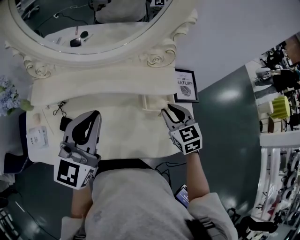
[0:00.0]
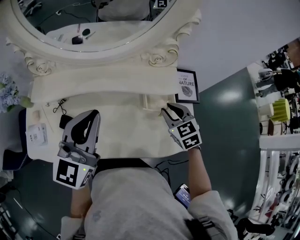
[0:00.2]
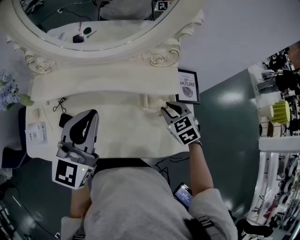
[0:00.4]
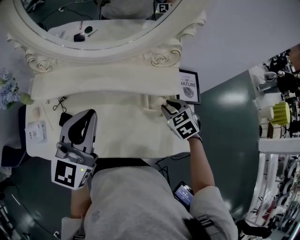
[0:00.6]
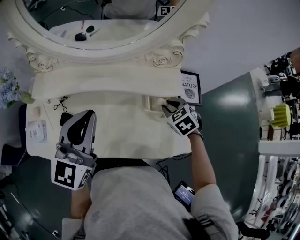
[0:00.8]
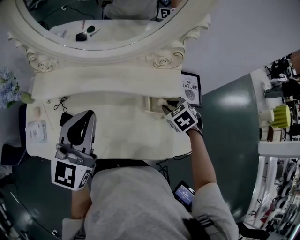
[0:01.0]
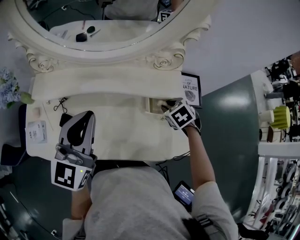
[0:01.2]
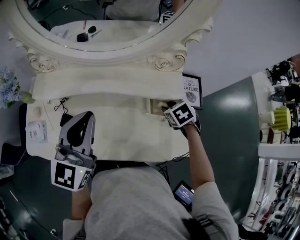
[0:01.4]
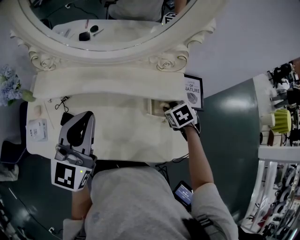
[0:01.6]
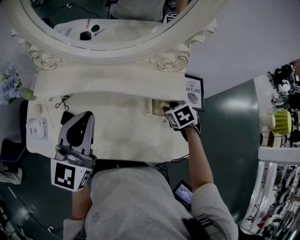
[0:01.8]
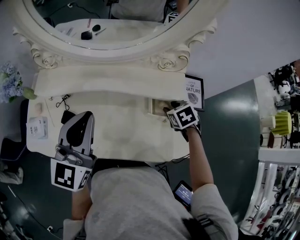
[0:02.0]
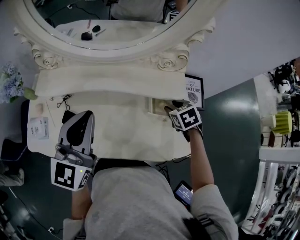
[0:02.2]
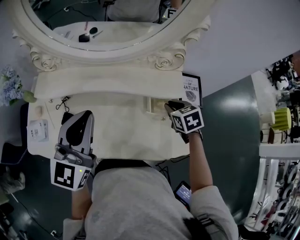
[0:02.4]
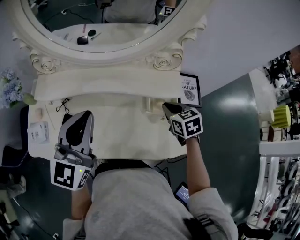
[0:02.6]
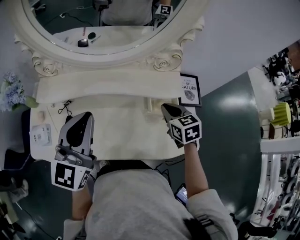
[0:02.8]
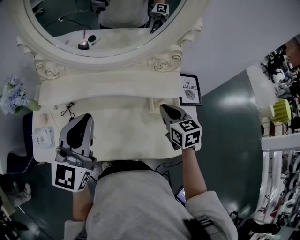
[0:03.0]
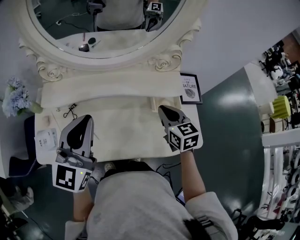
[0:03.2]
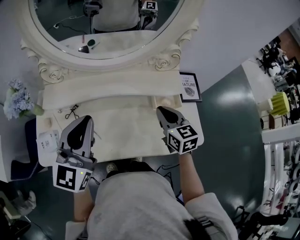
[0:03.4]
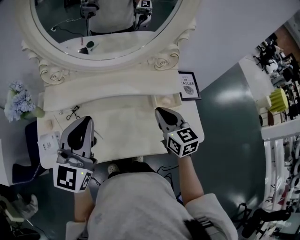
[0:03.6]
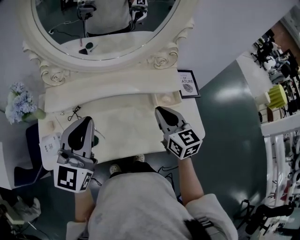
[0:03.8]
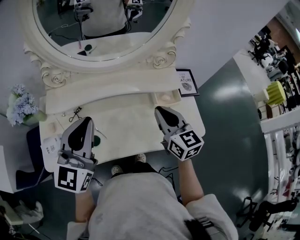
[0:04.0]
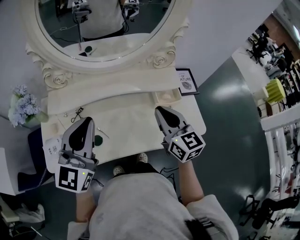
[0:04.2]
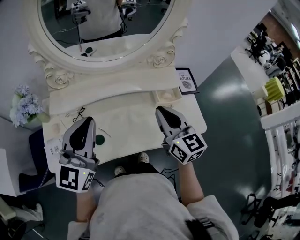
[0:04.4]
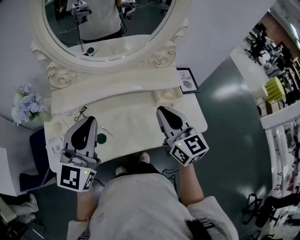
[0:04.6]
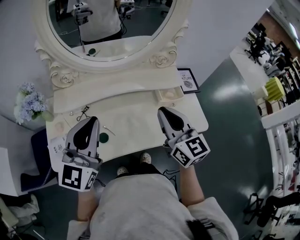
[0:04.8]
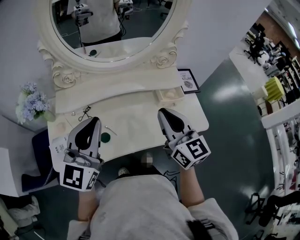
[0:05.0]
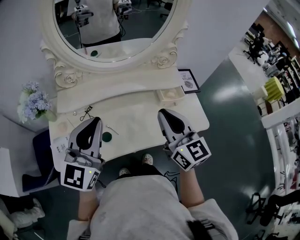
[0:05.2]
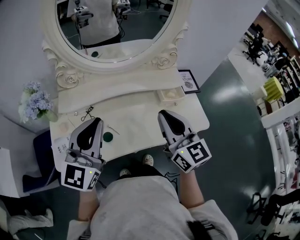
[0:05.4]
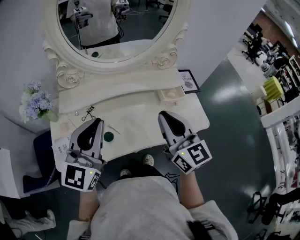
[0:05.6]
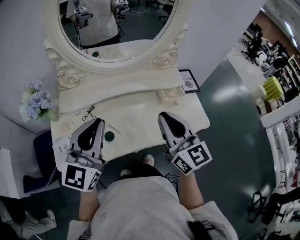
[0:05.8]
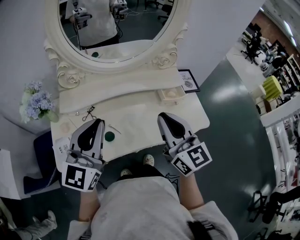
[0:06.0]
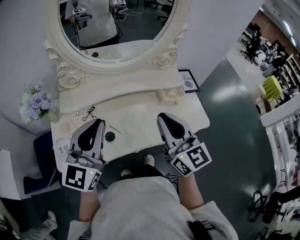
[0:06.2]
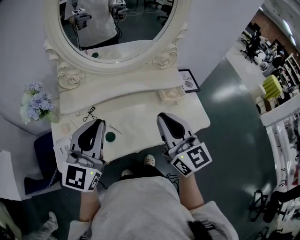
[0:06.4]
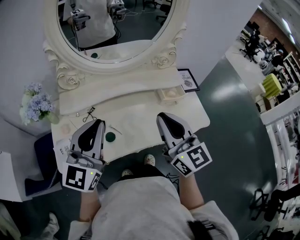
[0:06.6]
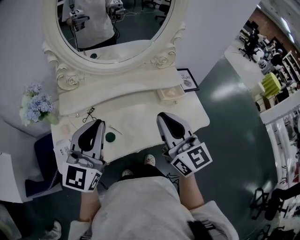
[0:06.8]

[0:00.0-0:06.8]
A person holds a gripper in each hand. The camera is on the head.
0:00.0 to 0:01.4: The right gripper moves downward and forward, some 10 cm, and angles its fingers downward, by some 40 degrees.
0:01.4 to 0:02.8: The right gripper travels upward by some 5 cm, and swivels approximately 30 degrees.
0:02.8 to 0:04.0: The left gripper shifts some 5 cm to the left, while the right gripper is displaced upward, to the left and backward by approximately 15 cm, and turns by about 30 degrees.
0:04.0 to 0:05.4: The left gripper goes roughly 5 cm backward. The right gripper goes about 15 cm backward, upward and to the left.
0:05.4 to 0:06.8: There are only small adjustments of the grippers.

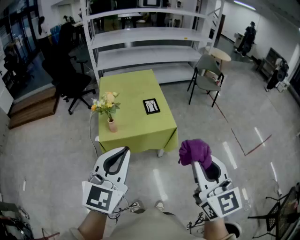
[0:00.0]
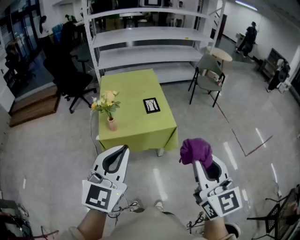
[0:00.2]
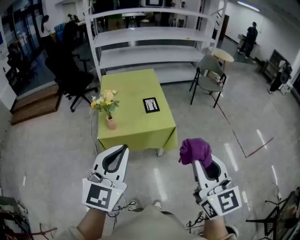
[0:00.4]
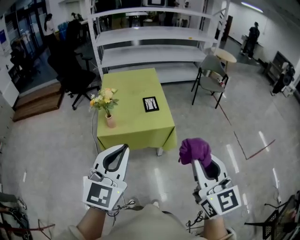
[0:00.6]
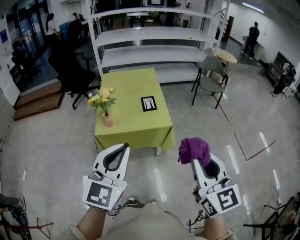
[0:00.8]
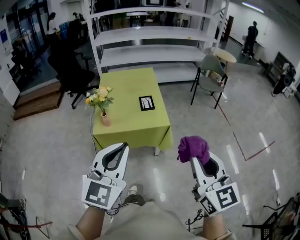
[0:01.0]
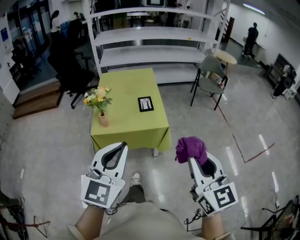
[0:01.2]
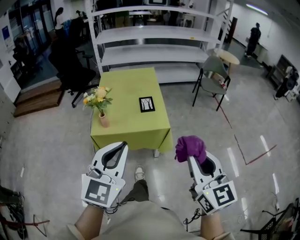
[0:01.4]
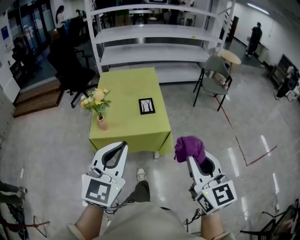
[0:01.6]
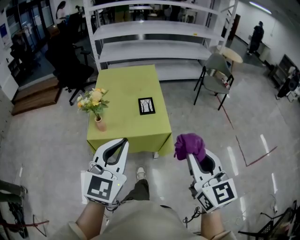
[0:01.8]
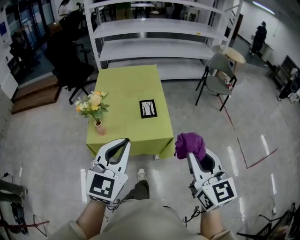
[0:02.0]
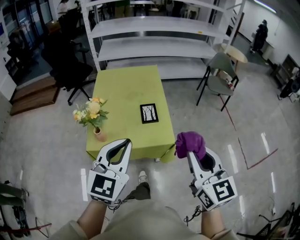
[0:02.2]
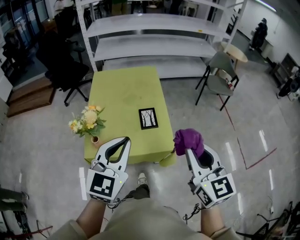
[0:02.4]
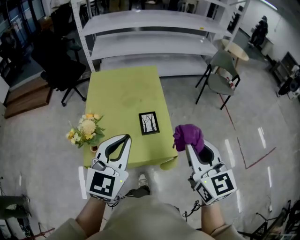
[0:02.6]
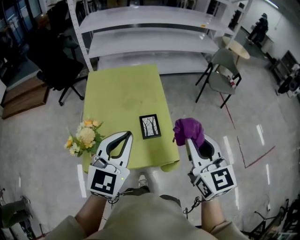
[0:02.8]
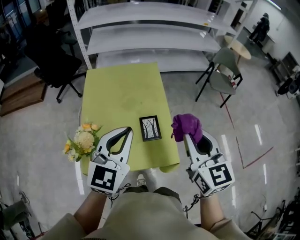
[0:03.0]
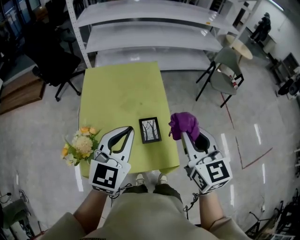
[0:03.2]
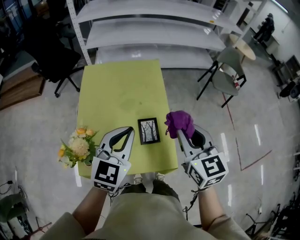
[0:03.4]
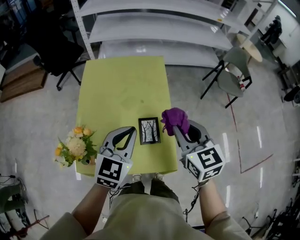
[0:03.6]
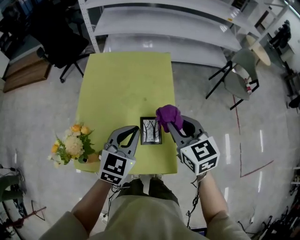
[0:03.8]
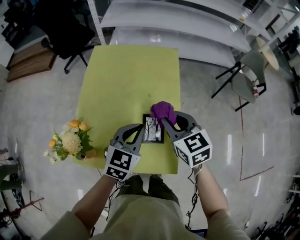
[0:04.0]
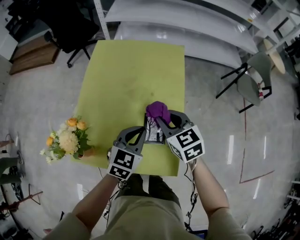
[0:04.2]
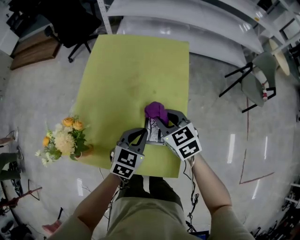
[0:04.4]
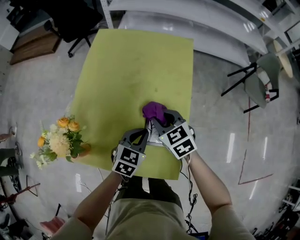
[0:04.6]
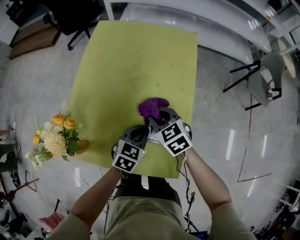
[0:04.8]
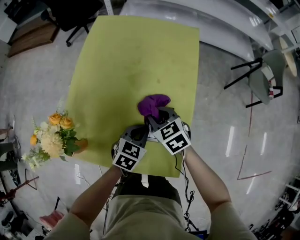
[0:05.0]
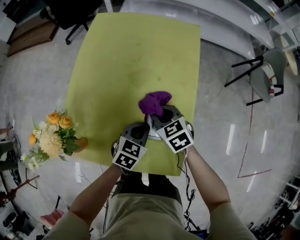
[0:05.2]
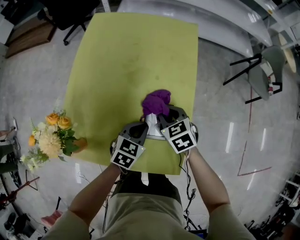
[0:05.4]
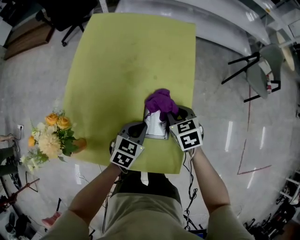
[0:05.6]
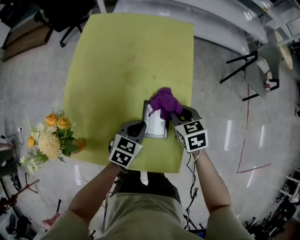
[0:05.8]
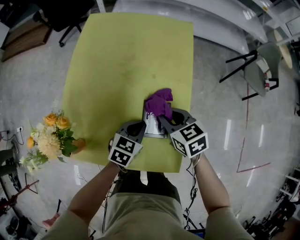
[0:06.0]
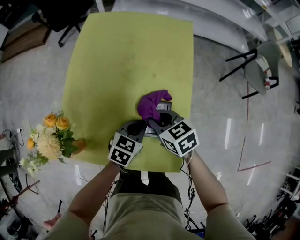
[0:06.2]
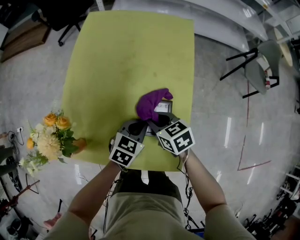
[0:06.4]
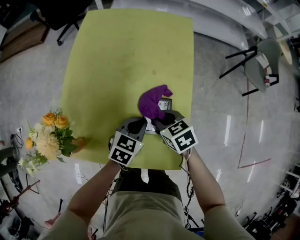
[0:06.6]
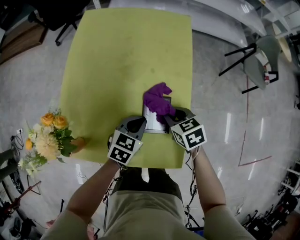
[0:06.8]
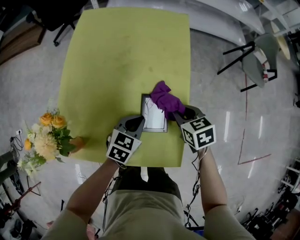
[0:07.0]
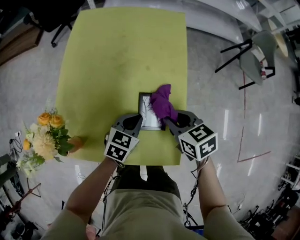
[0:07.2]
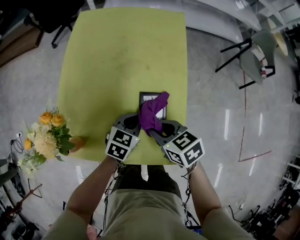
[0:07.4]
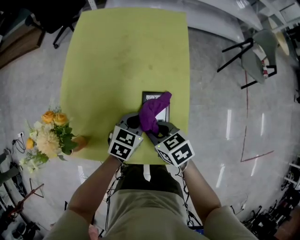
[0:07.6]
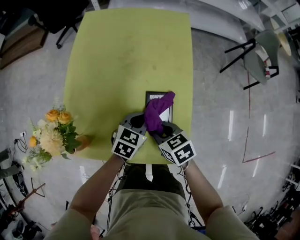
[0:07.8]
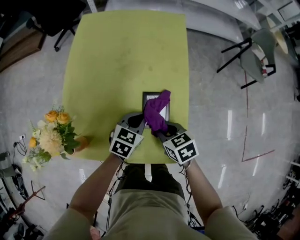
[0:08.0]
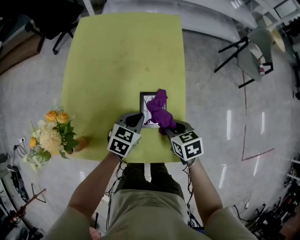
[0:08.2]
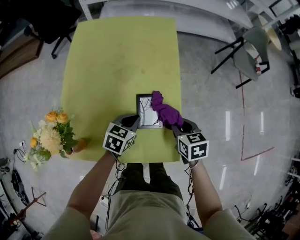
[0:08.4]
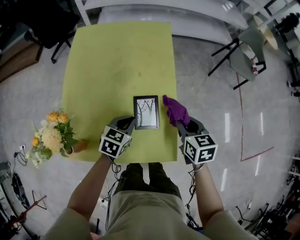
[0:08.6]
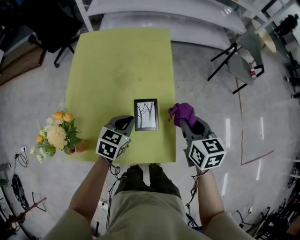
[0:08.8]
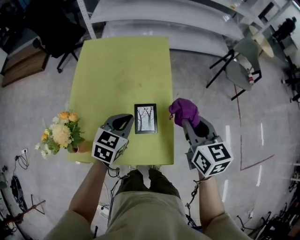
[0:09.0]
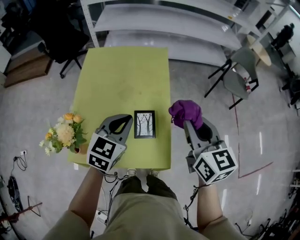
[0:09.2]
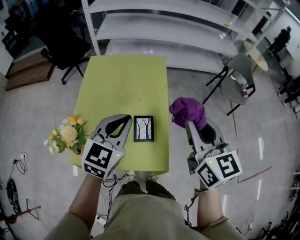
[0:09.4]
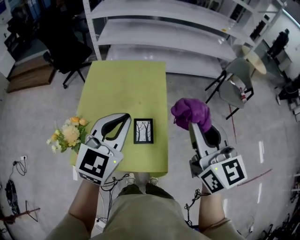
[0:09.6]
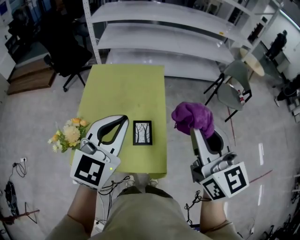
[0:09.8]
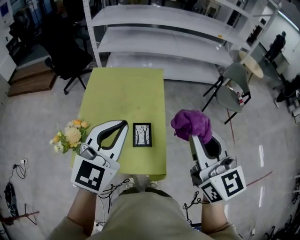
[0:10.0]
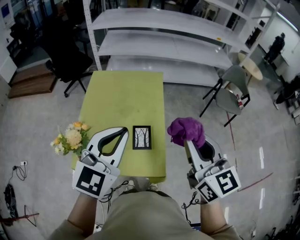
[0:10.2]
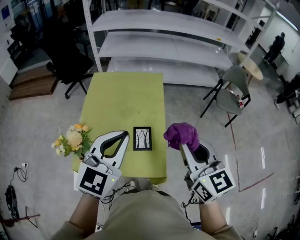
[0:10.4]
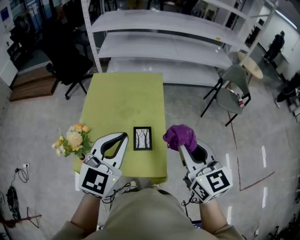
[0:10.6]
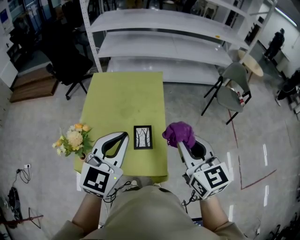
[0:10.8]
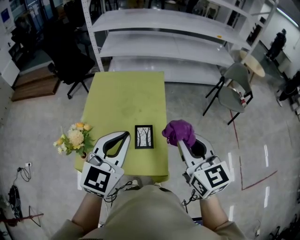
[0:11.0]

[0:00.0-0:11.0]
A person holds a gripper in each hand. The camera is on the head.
0:00.0 to 0:01.6: The right gripper moves to the right, forward and downward, approximately 15 cm; the left gripper is displaced to the right and forward by some 10 cm.
0:01.6 to 0:03.2: The pair of grippers is taken forward, approximately 50 cm.
0:03.2 to 0:04.8: The left gripper heads downward, covering about 35 cm, and points its fingers about 30 degrees further downward. The right gripper goes roughly 35 cm downward and forward, and swivels some 50 degrees.
0:04.8 to 0:06.2: The right gripper moves about 10 cm to the right and comes back.
0:06.2 to 0:07.8: The right gripper heads backward, covering about 10 cm, and moves about 10 cm to the right and comes back.
0:07.8 to 0:09.4: Both grippers move upward, some 35 cm. The left gripper rotates roughly 30 degrees, while the right gripper angles its fingers upward, by about 40 degrees.
0:09.4 to 0:11.0: The right gripper is displaced backward by approximately 5 cm. The left gripper shifts some 10 cm backward and upward.

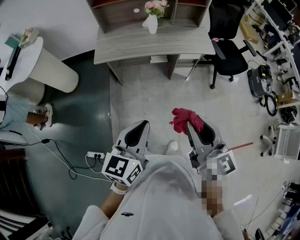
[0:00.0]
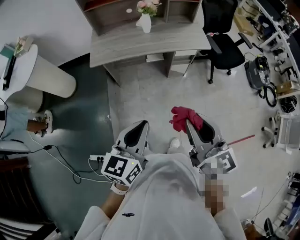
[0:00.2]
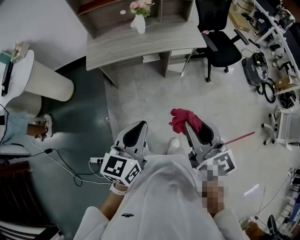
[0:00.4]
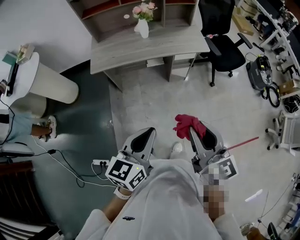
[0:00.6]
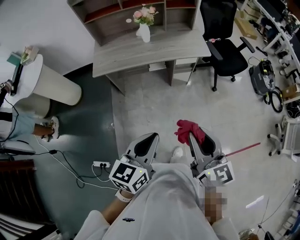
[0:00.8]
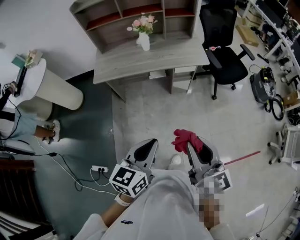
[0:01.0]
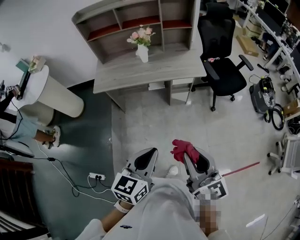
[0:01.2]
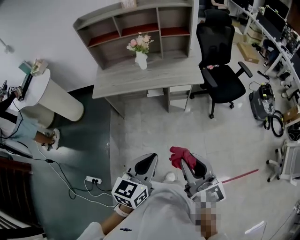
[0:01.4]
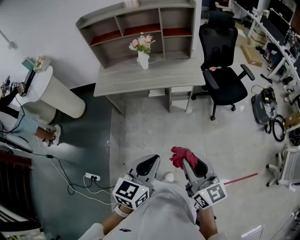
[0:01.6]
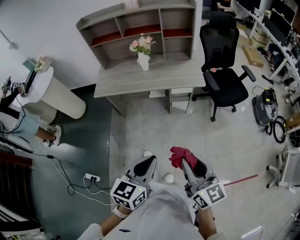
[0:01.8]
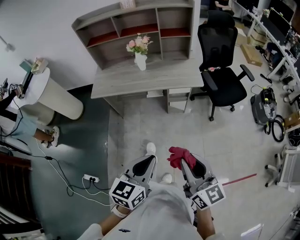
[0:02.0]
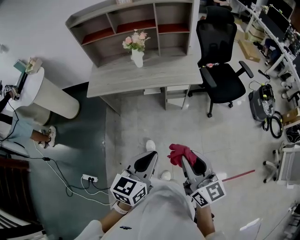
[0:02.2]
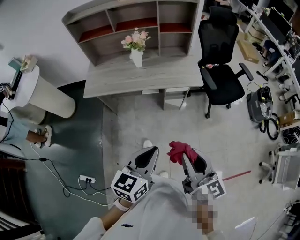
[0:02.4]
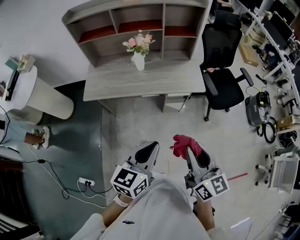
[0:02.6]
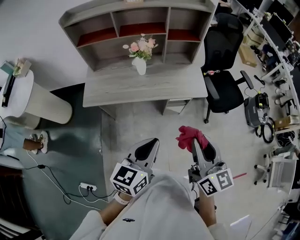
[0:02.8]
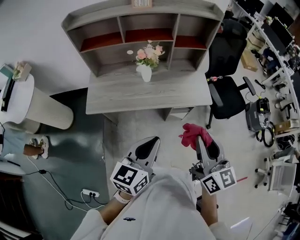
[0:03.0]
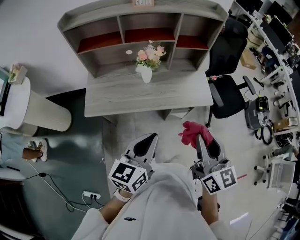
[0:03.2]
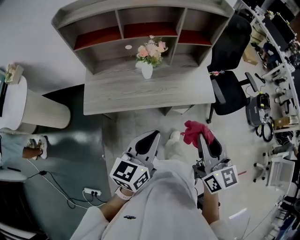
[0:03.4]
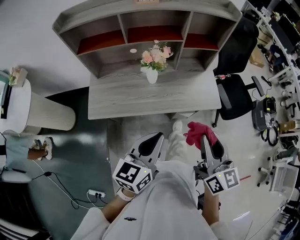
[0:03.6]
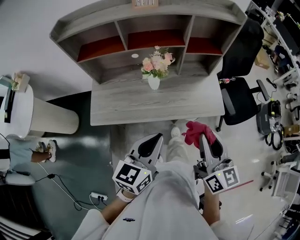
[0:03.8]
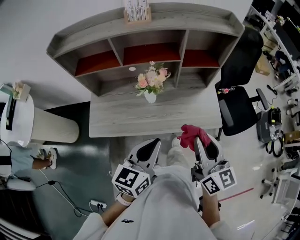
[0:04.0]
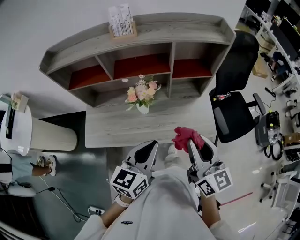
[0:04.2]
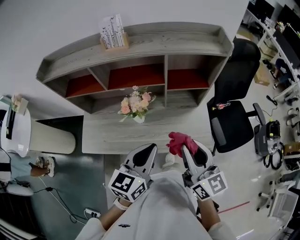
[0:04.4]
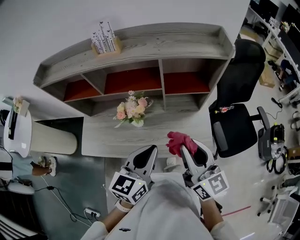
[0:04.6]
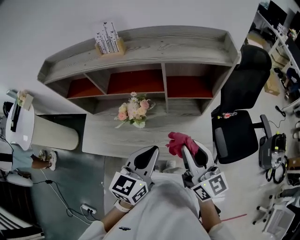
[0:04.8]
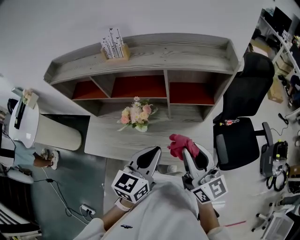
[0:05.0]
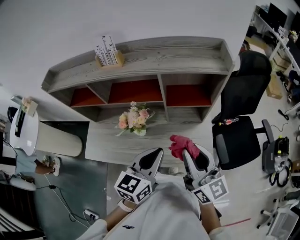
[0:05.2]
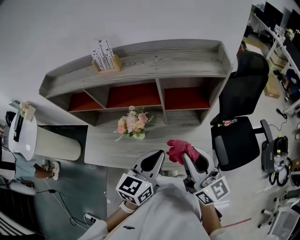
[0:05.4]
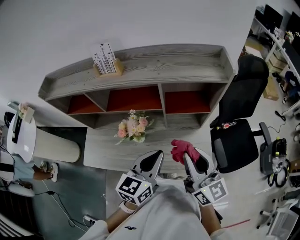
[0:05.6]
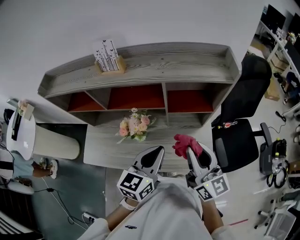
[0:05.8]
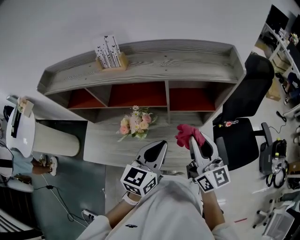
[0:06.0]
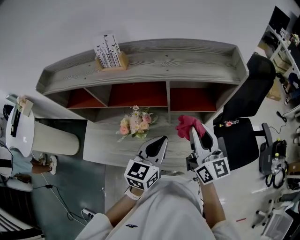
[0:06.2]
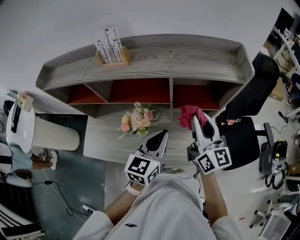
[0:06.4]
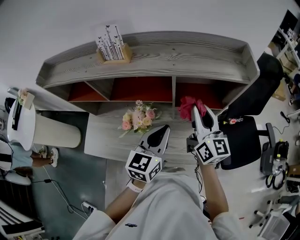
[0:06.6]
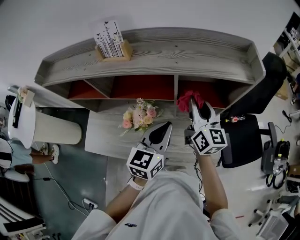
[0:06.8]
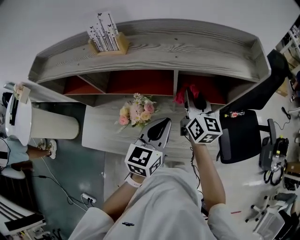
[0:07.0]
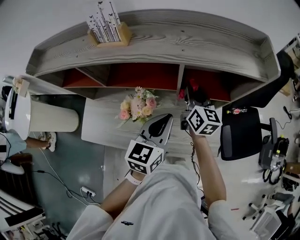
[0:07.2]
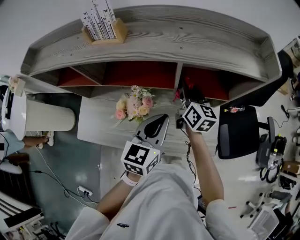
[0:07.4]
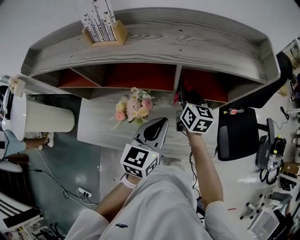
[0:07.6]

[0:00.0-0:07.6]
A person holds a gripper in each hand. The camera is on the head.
0:00.0 to 0:01.6: The grippers both shift to the right by roughly 20 cm.
0:01.6 to 0:03.0: The right gripper heads forward, covering roughly 30 cm, while the left gripper heads forward and to the left, covering roughly 30 cm.
0:03.0 to 0:04.6: Both grippers move forward, roughly 35 cm.
0:04.6 to 0:06.0: Both grippers move forward, approximately 10 cm.
0:06.0 to 0:07.6: The left gripper shifts roughly 10 cm forward and downward. The right gripper goes about 25 cm forward, downward and to the left, and swivels approximately 20 degrees.
